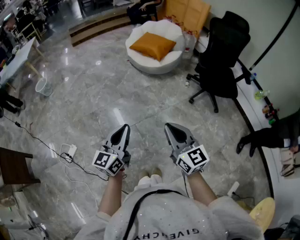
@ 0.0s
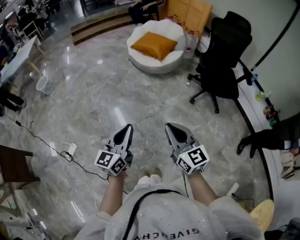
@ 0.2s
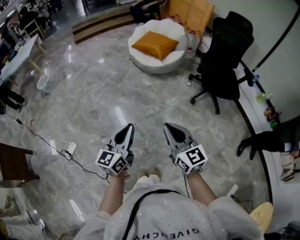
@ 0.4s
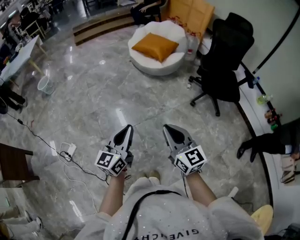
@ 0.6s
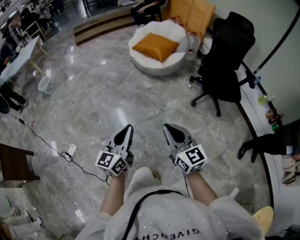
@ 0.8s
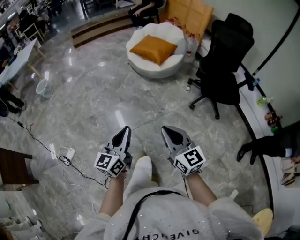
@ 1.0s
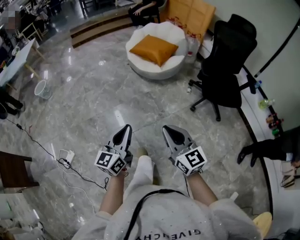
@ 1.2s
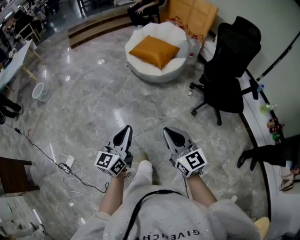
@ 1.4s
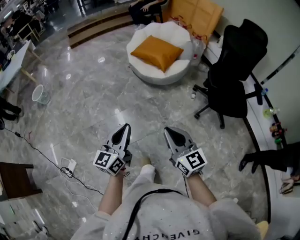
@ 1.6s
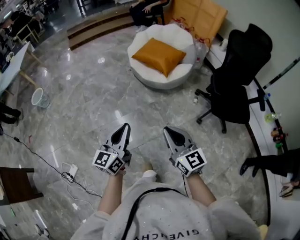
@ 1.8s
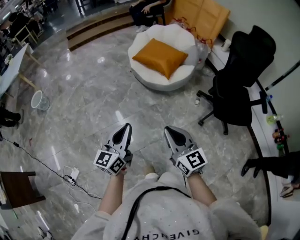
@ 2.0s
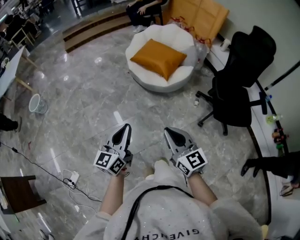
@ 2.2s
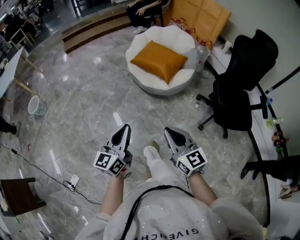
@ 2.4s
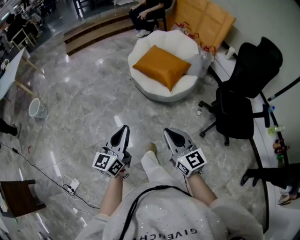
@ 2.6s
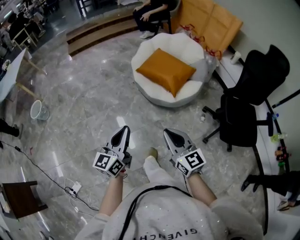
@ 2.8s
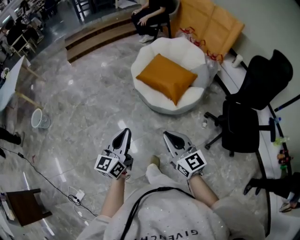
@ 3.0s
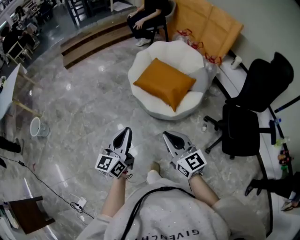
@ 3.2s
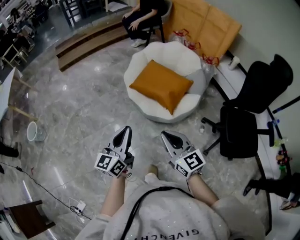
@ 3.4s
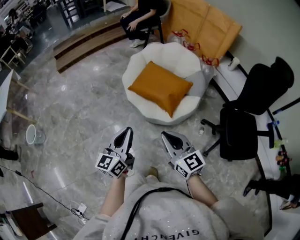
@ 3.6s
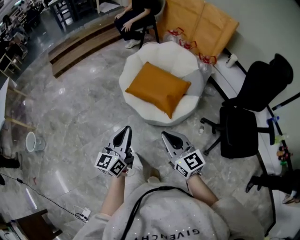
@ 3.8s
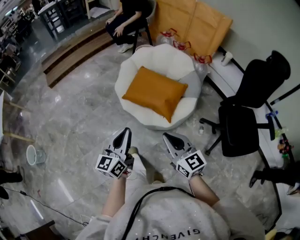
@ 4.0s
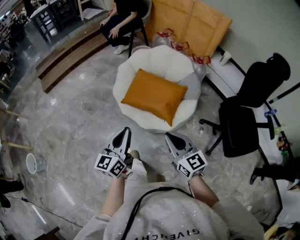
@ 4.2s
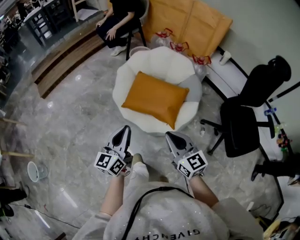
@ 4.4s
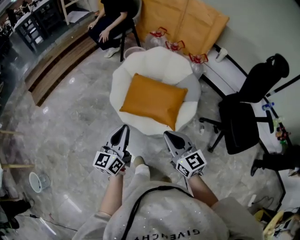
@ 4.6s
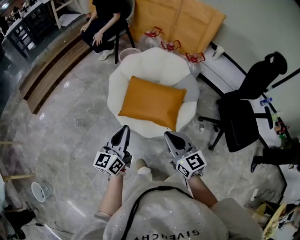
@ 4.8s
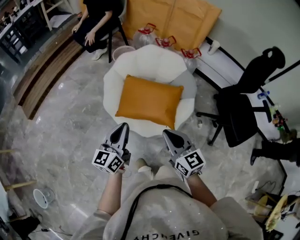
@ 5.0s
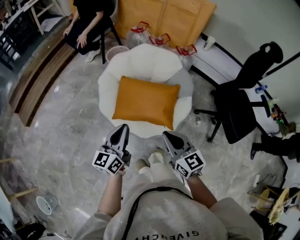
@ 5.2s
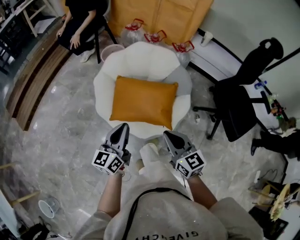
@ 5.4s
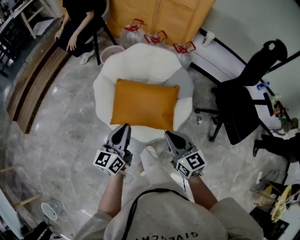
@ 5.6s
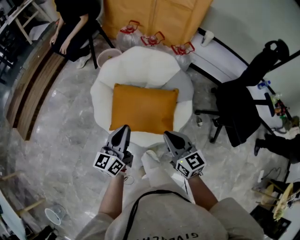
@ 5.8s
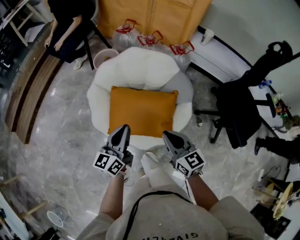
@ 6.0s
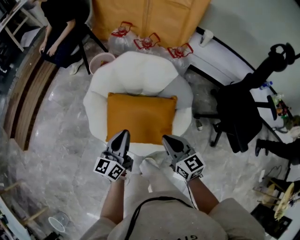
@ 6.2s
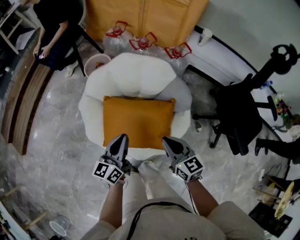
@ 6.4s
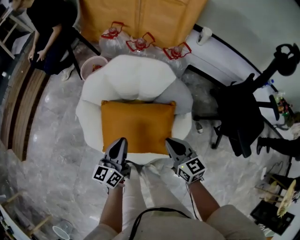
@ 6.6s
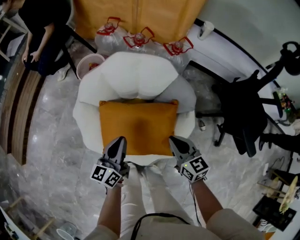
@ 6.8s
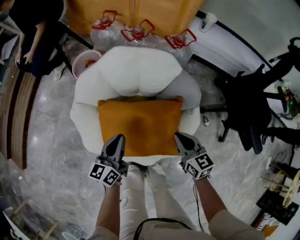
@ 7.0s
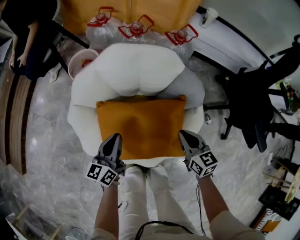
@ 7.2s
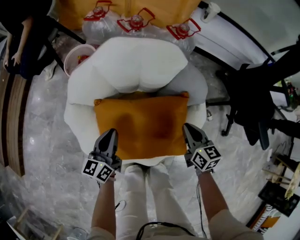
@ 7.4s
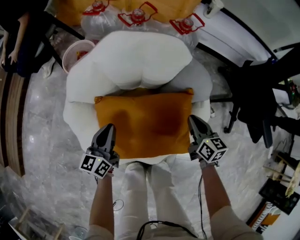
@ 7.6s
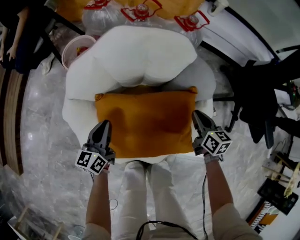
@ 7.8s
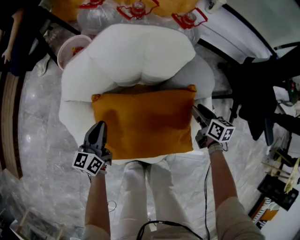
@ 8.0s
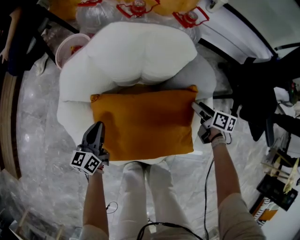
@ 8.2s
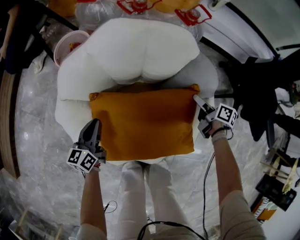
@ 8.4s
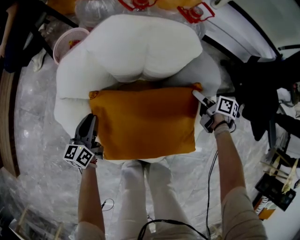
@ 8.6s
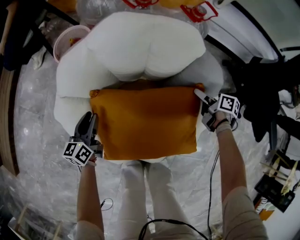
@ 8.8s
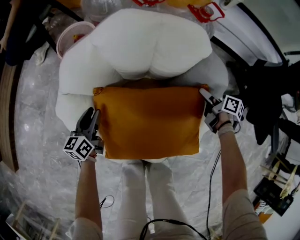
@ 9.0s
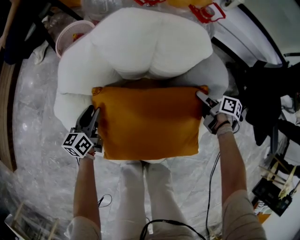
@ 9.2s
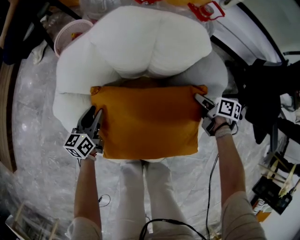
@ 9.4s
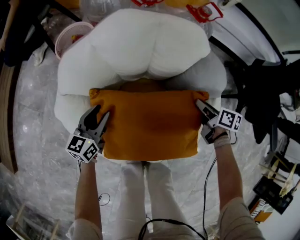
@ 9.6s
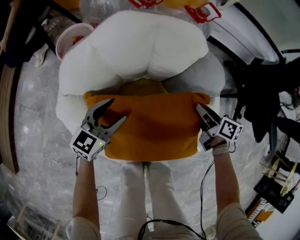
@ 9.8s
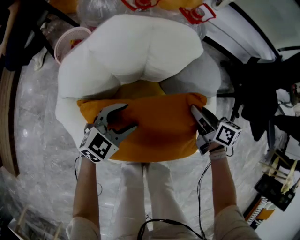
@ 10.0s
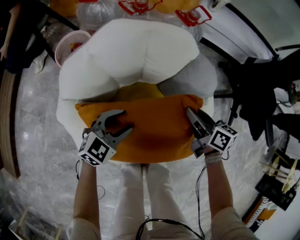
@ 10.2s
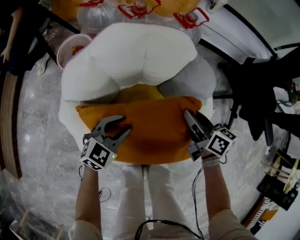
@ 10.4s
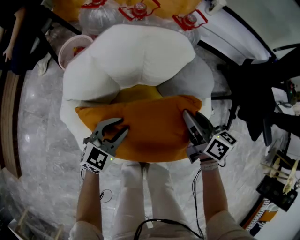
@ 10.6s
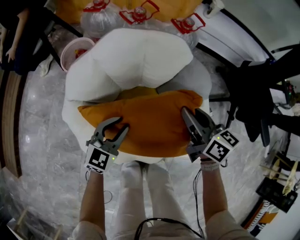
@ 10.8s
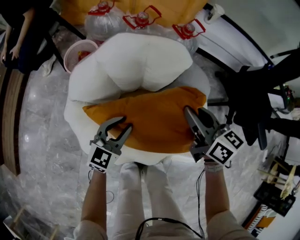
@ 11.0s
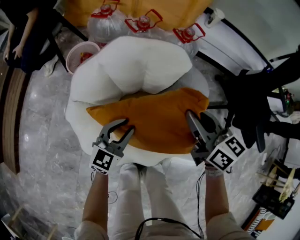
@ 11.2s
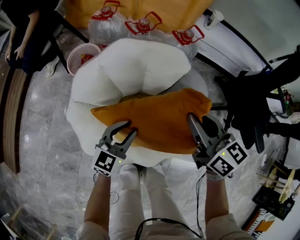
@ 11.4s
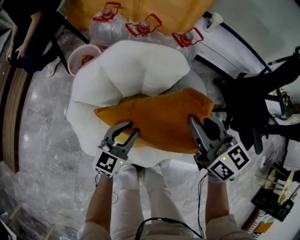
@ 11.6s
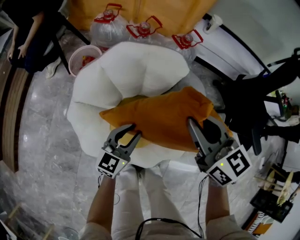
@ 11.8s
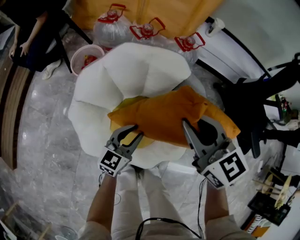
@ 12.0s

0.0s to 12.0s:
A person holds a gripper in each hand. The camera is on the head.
0.0s to 1.6s: The two grippers go about 25 cm forward.
1.6s to 3.0s: Both grippers travel together forward, some 35 cm.
3.0s to 4.4s: The two grippers go some 30 cm forward.
4.4s to 6.0s: The right gripper is displaced forward and downward by some 25 cm, and rotates roughly 20 degrees. The left gripper travels forward by some 30 cm, and rotates approximately 20 degrees.
6.0s to 7.6s: Both grippers move downward and forward, about 30 cm. The right gripper changes its angle by some 30 degrees.
7.6s to 9.0s: The right gripper heads downward, forward and to the right, covering some 15 cm, rotates approximately 40 degrees, and opens its fingers. The left gripper shifts roughly 15 cm downward and to the left, and opens its fingers.
9.0s to 10.4s: The left gripper travels to the right and upward by some 20 cm, and rotates around the line of its fingers by about 50 degrees, clockwise from behind. Meanwhile the right gripper goes approximately 20 cm upward and to the left, rotates some 30 degrees, and closes its fingers.
10.4s to 12.0s: The left gripper travels upward by about 10 cm, and changes its angle by roughly 30 degrees; the right gripper moves upward, approximately 20 cm, and twists about 50 degrees counterclockwise, seen from behind.

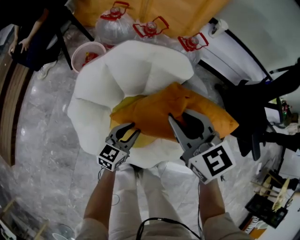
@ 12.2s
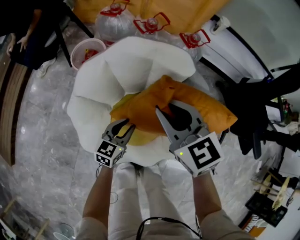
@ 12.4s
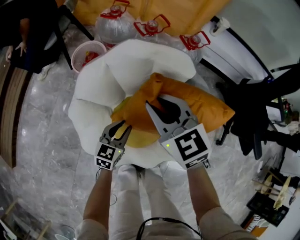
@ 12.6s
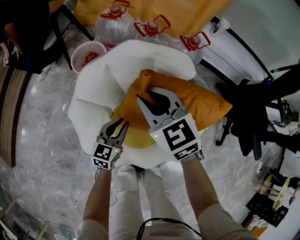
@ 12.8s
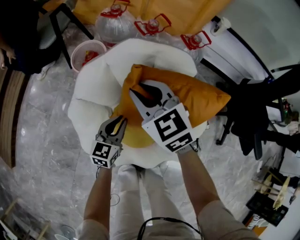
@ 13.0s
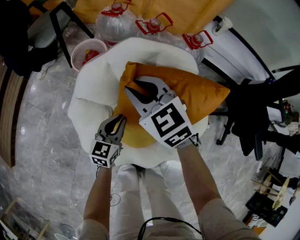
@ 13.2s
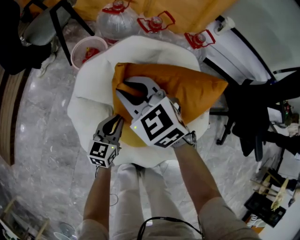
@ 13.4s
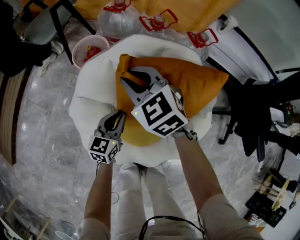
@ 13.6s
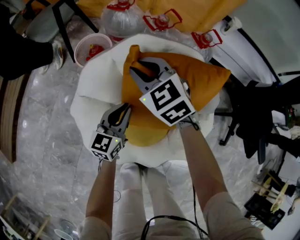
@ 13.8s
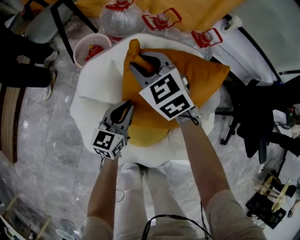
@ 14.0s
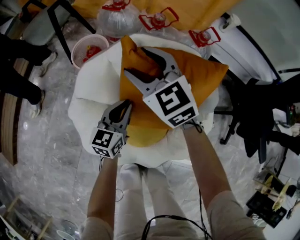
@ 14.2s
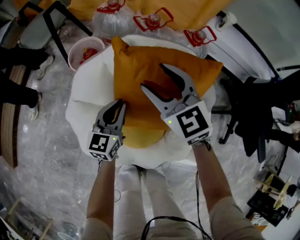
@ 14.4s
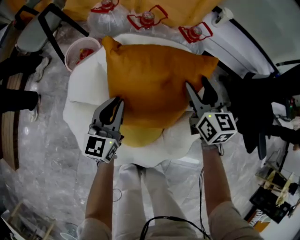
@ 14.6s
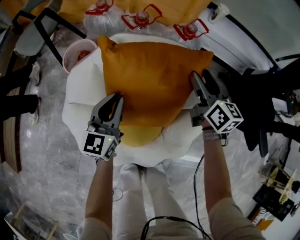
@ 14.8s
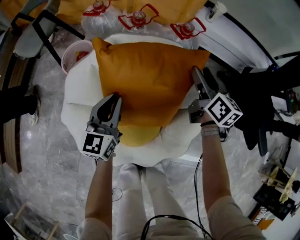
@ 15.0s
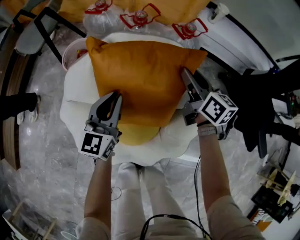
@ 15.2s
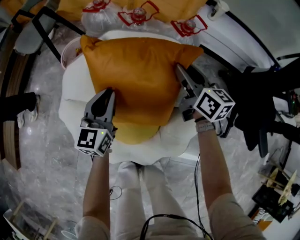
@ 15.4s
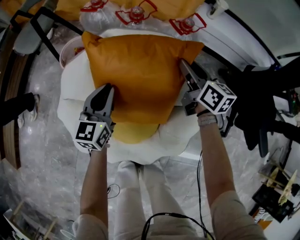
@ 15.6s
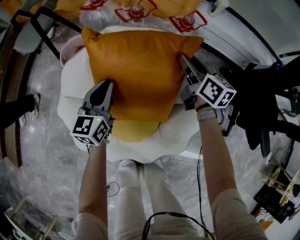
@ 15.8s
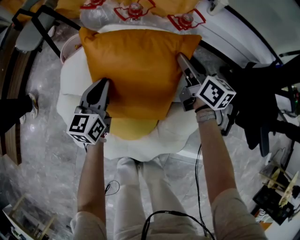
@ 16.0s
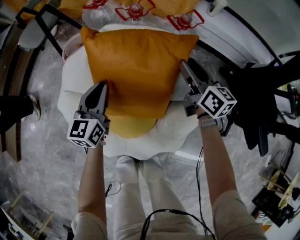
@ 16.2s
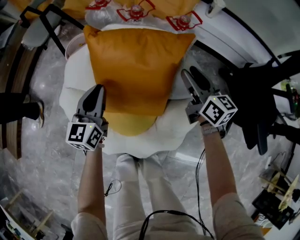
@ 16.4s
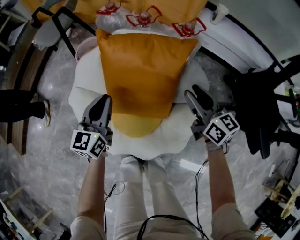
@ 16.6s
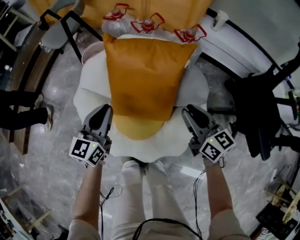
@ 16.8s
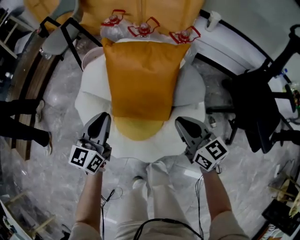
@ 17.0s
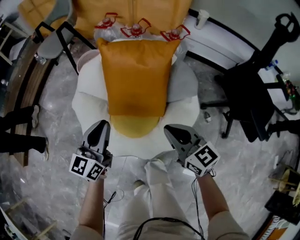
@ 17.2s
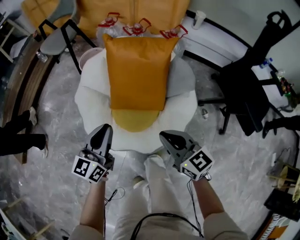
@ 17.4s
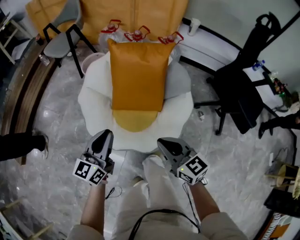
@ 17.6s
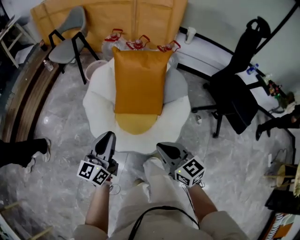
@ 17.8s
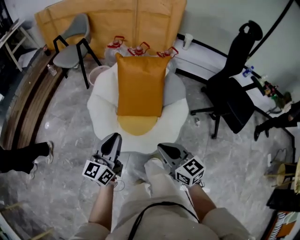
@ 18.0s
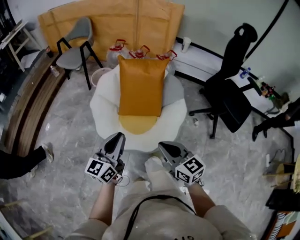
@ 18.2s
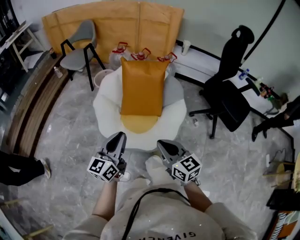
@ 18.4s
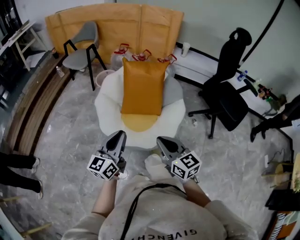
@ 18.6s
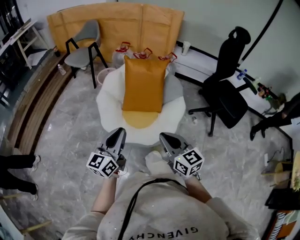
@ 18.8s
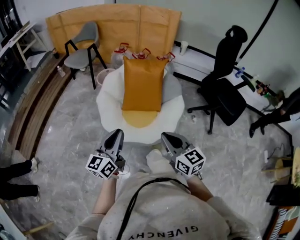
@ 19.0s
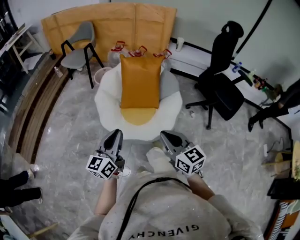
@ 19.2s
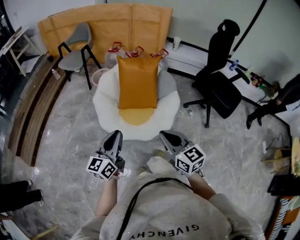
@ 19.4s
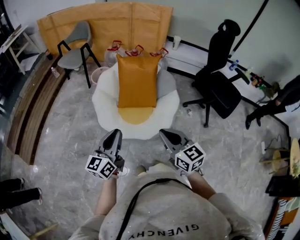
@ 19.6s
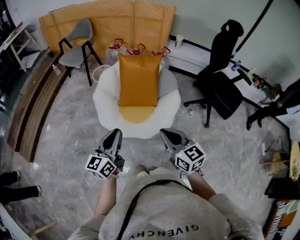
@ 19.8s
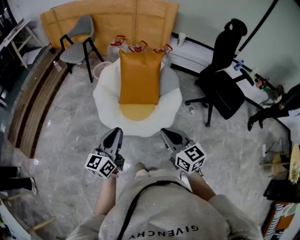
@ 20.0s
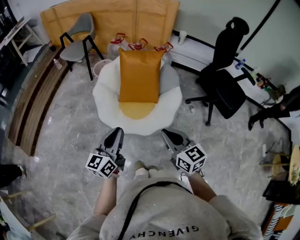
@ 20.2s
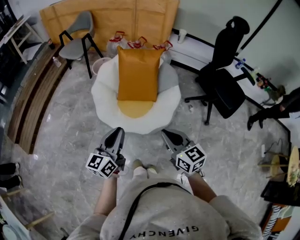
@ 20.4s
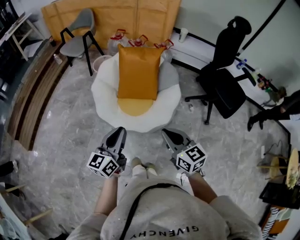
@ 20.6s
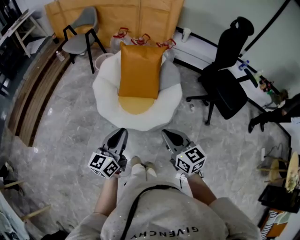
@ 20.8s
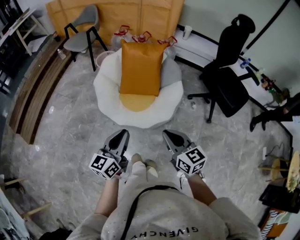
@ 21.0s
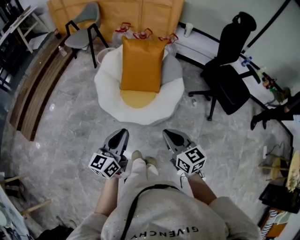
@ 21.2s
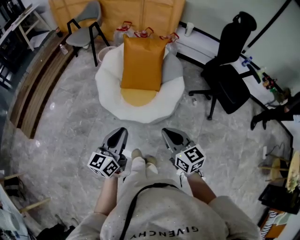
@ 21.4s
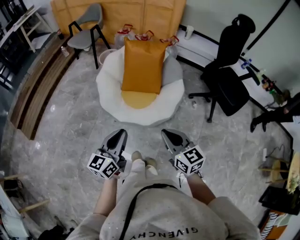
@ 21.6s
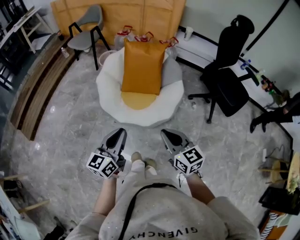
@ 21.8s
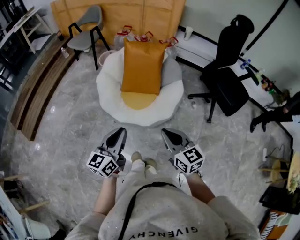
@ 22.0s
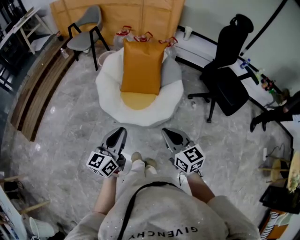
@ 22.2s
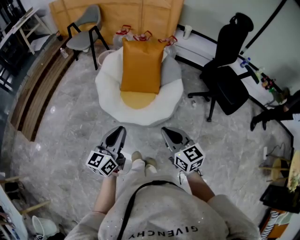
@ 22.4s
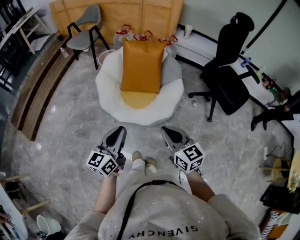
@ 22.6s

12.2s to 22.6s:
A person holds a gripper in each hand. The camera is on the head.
12.2s to 13.6s: The right gripper goes about 20 cm to the left, forward and downward, and swivels approximately 20 degrees, while the left gripper moves to the left and forward, approximately 10 cm.
13.6s to 15.2s: The right gripper travels to the right by some 30 cm, and rolls clockwise, seen from behind, by roughly 60 degrees, while the left gripper is displaced upward, to the right and forward by approximately 15 cm.
15.2s to 16.6s: The right gripper heads backward, covering roughly 15 cm. Meanwhile the left gripper travels backward by some 10 cm.
16.6s to 18.2s: The left gripper heads backward and upward, covering about 40 cm. The right gripper is displaced backward, to the left and upward by some 50 cm, and closes its fingers.
18.2s to 19.6s: The right gripper moves upward and backward, approximately 10 cm, while the left gripper heads backward and upward, covering about 10 cm.
19.6s to 21.2s: The left gripper is displaced backward and to the right by some 10 cm. The right gripper shifts by some 10 cm.
21.2s to 22.6s: The grippers stay close to where they were, moving slightly.

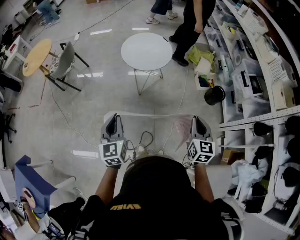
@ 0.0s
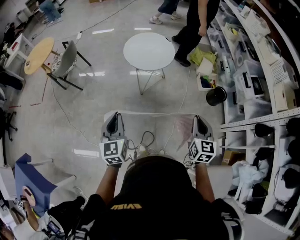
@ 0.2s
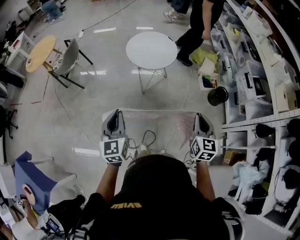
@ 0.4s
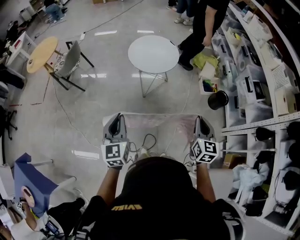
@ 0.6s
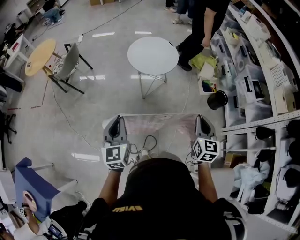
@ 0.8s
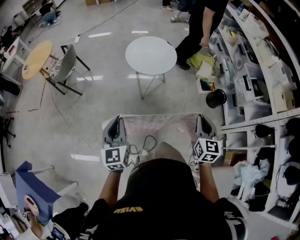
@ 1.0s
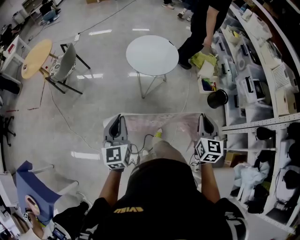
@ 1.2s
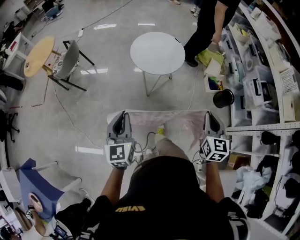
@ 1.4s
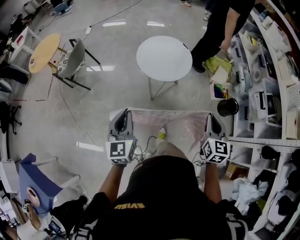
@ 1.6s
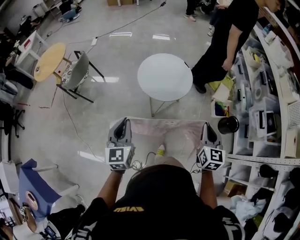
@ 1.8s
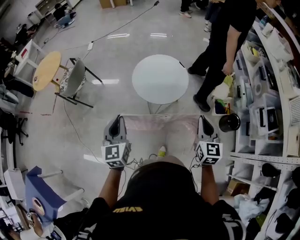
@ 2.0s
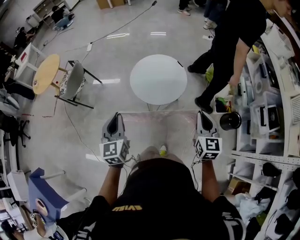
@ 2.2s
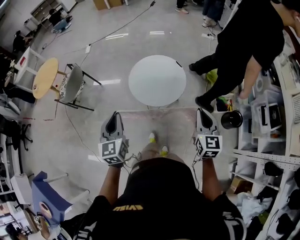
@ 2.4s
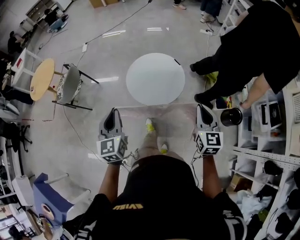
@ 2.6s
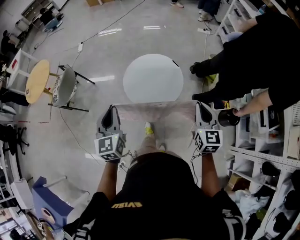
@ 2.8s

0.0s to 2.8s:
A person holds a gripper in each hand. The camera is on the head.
0.0s to 1.4s: The two grippers go roughly 10 cm forward.
1.4s to 2.8s: Both grippers move forward, roughly 35 cm.
